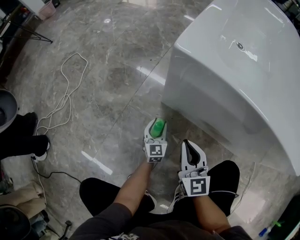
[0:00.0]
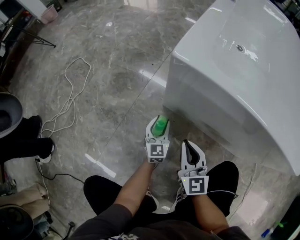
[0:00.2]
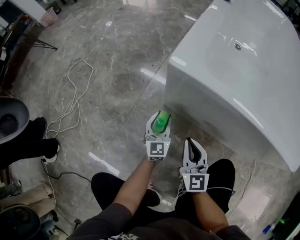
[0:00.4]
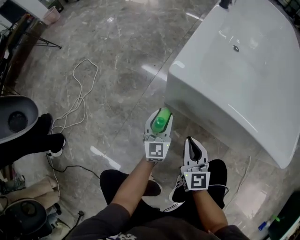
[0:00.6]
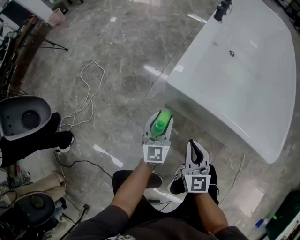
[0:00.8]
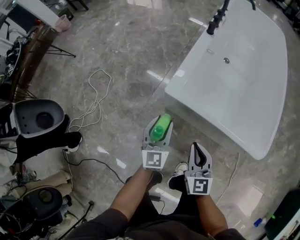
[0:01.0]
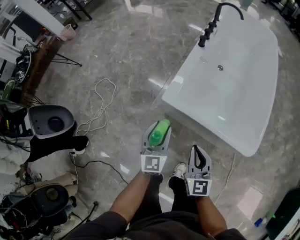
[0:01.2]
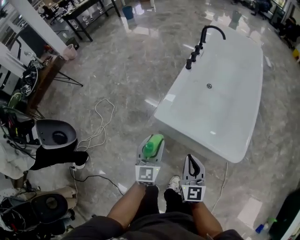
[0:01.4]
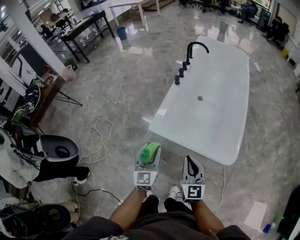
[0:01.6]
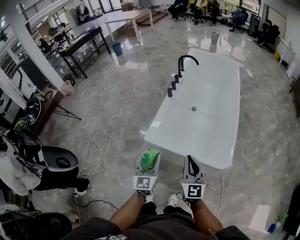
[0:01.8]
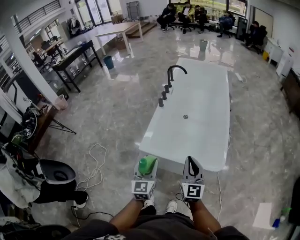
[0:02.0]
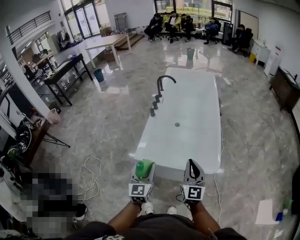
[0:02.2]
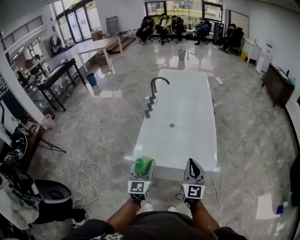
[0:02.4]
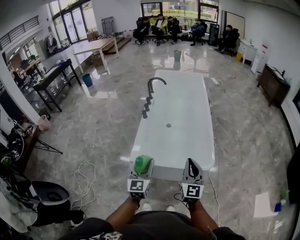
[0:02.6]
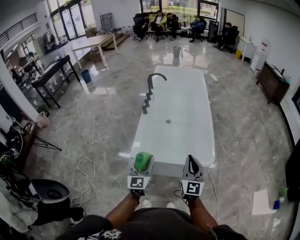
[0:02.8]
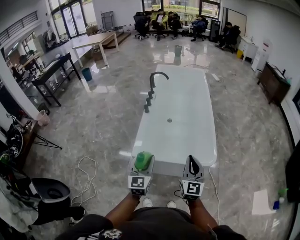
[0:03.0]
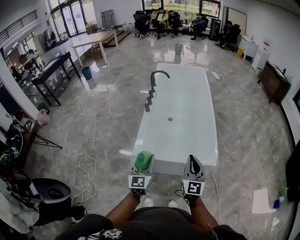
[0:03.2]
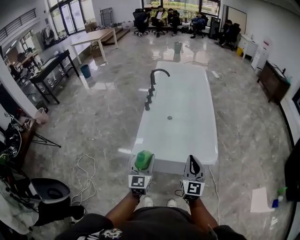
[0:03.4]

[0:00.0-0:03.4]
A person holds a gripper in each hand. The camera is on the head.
0:00.0 to 0:01.6: Both grippers move upward, about 70 cm.
0:01.6 to 0:03.4: The right gripper is displaced upward and to the right by approximately 10 cm, and rotates about 30 degrees. The left gripper travels upward by some 10 cm.

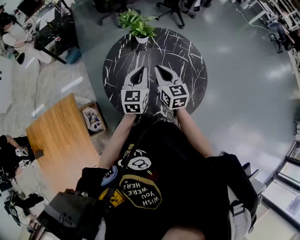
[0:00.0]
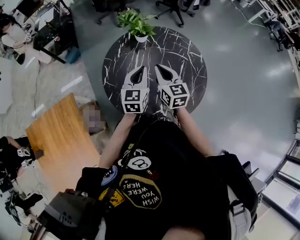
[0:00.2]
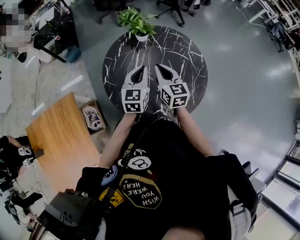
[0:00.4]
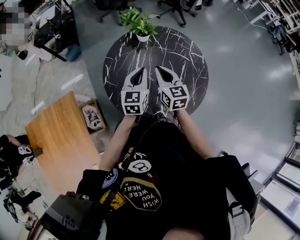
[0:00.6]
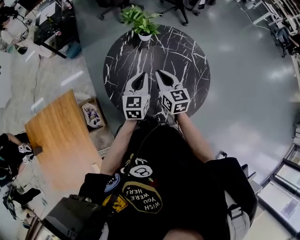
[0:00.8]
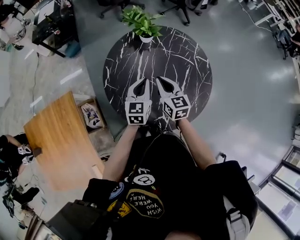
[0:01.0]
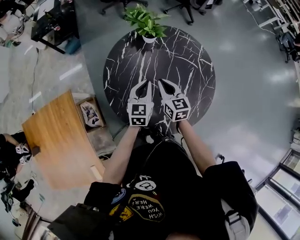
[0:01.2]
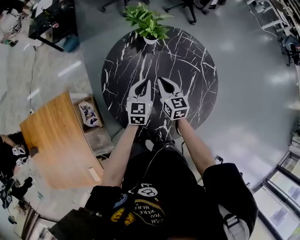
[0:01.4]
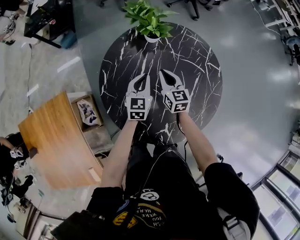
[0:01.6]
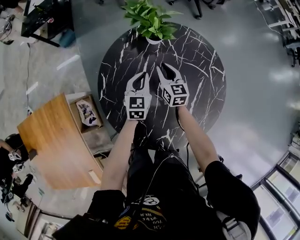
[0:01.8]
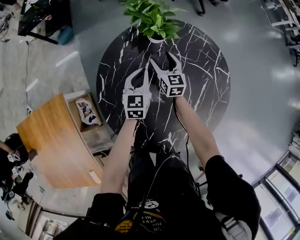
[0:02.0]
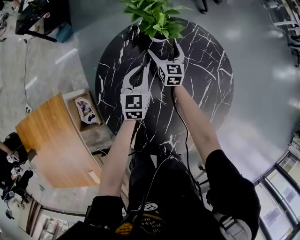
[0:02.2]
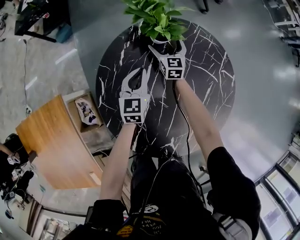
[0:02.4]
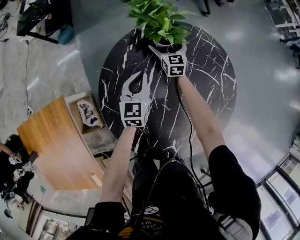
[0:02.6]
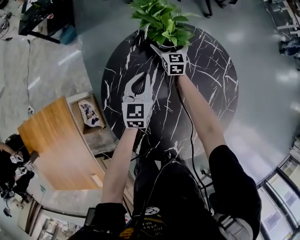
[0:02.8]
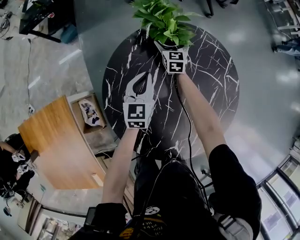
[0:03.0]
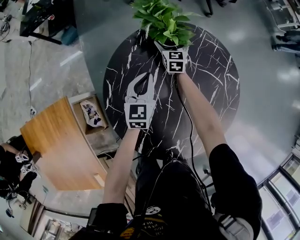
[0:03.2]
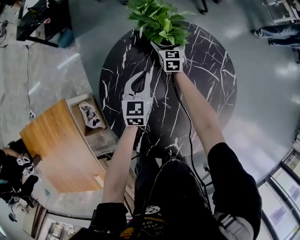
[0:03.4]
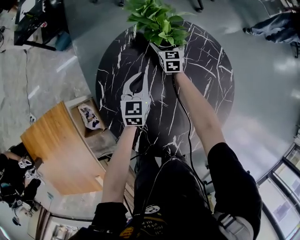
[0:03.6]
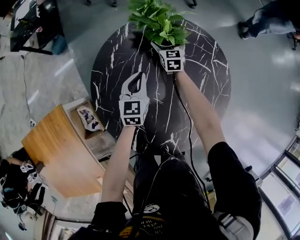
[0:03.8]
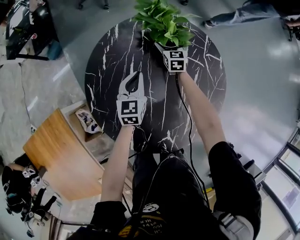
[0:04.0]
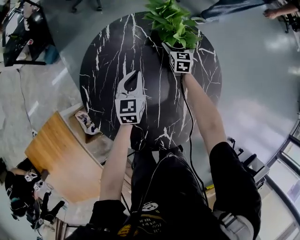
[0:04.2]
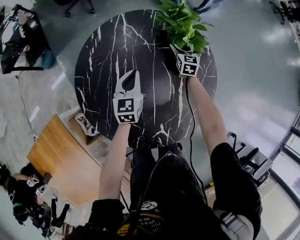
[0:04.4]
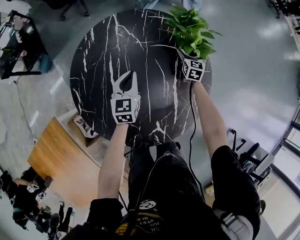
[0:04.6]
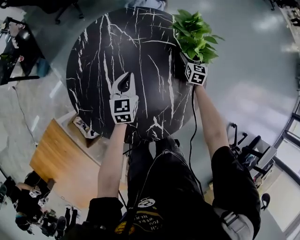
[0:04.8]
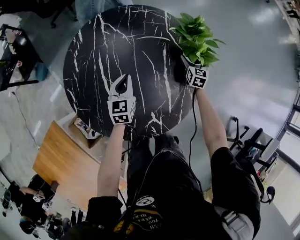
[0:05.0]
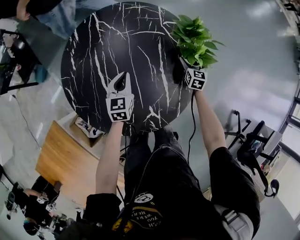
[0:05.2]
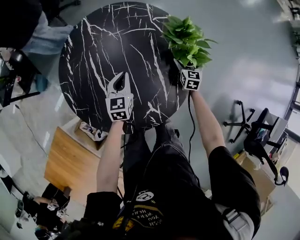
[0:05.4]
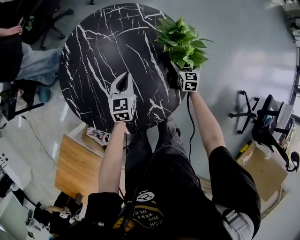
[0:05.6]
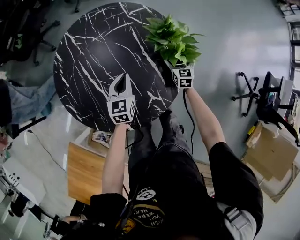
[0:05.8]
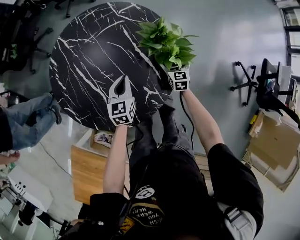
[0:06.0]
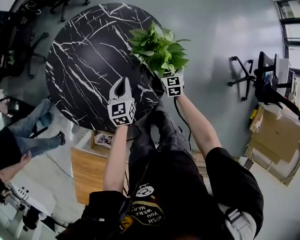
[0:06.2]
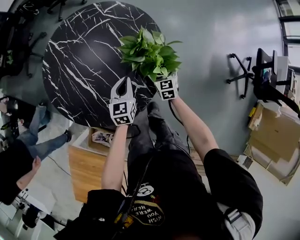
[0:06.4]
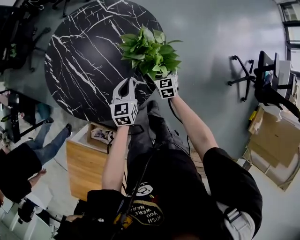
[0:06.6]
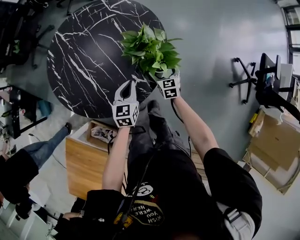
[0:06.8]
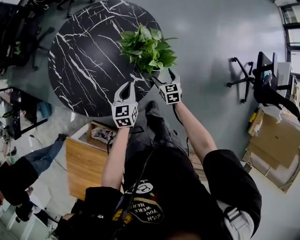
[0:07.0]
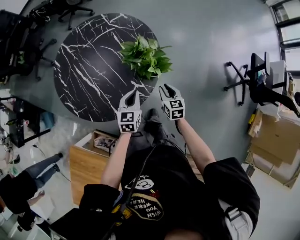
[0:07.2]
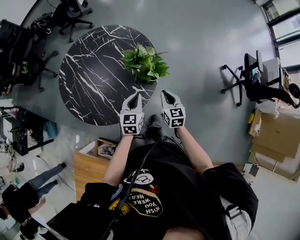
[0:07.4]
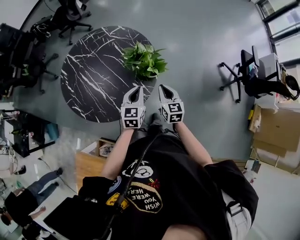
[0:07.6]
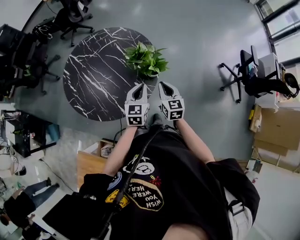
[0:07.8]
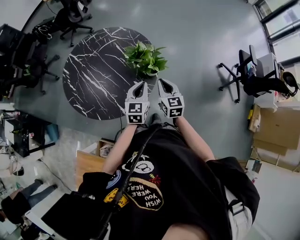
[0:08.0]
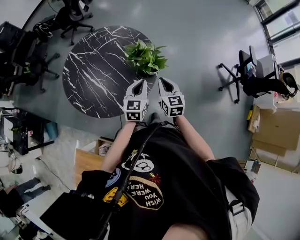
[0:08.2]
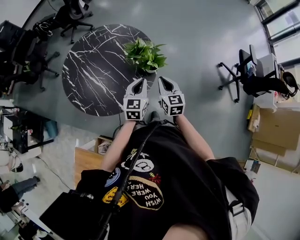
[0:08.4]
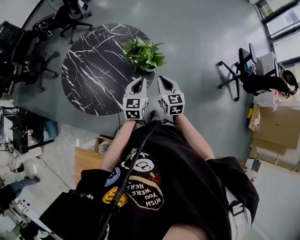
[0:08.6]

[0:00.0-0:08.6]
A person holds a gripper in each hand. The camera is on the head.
0:00.0 to 0:01.4: Both grippers move downward and forward, some 15 cm.
0:01.4 to 0:02.8: The right gripper shifts some 35 cm forward and downward, and opens its fingers, while the left gripper is displaced forward and downward by roughly 15 cm.
0:02.8 to 0:04.4: The right gripper goes some 35 cm to the right, and changes its angle by approximately 30 degrees. Meanwhile the left gripper travels to the right by approximately 15 cm.
0:04.4 to 0:05.8: The right gripper moves backward and to the right, about 35 cm, and turns by some 20 degrees, while the left gripper goes about 20 cm to the right and backward, and rotates roughly 30 degrees.
0:05.8 to 0:07.2: The right gripper moves backward, some 25 cm, and closes, while the left gripper shifts about 20 cm backward and to the right.
0:07.2 to 0:08.6: Both grippers travel together upward, some 15 cm.

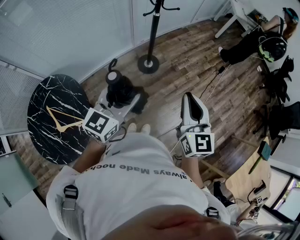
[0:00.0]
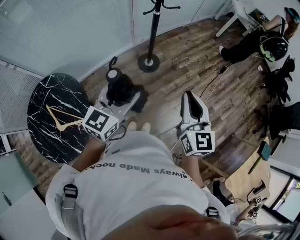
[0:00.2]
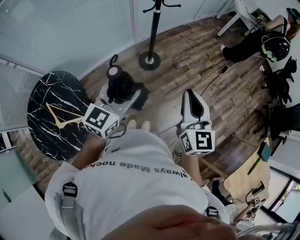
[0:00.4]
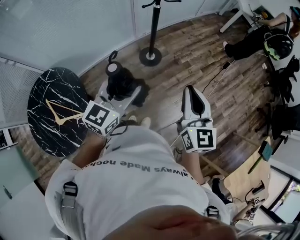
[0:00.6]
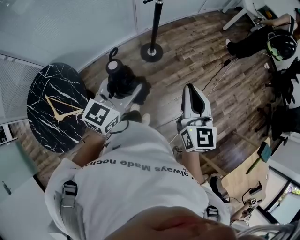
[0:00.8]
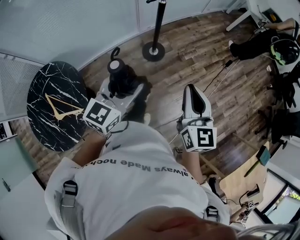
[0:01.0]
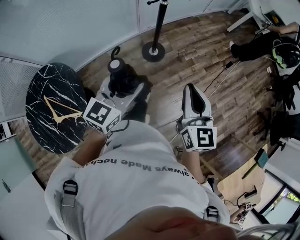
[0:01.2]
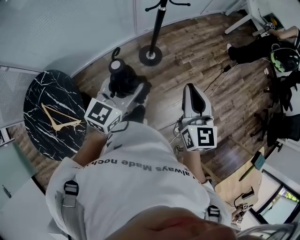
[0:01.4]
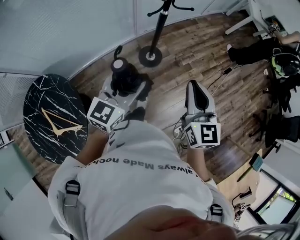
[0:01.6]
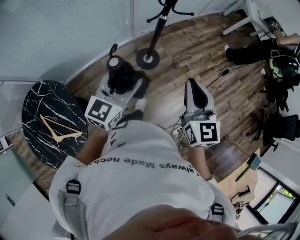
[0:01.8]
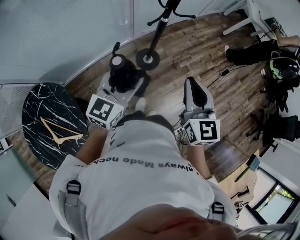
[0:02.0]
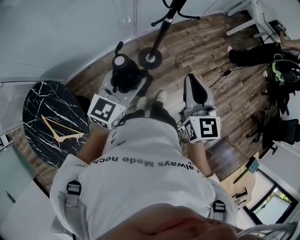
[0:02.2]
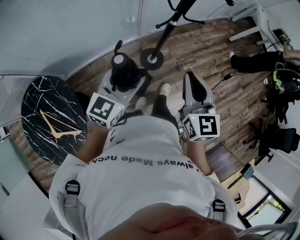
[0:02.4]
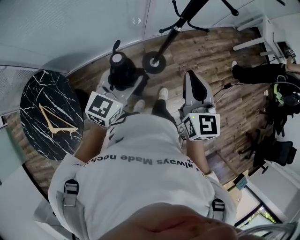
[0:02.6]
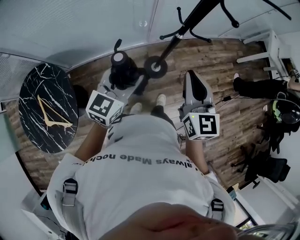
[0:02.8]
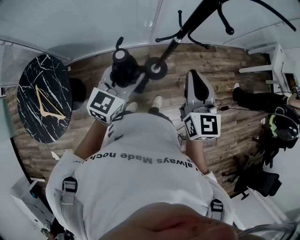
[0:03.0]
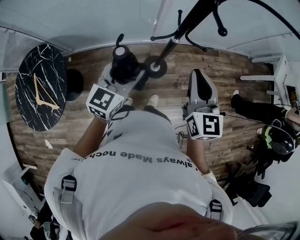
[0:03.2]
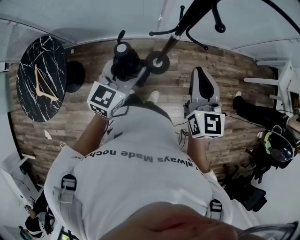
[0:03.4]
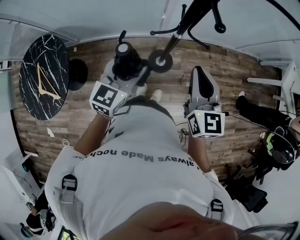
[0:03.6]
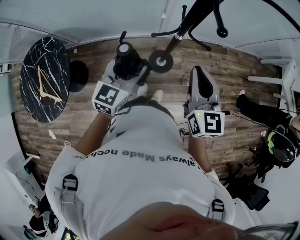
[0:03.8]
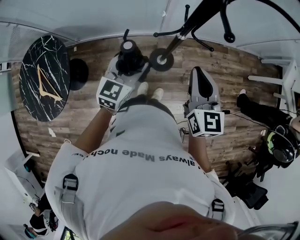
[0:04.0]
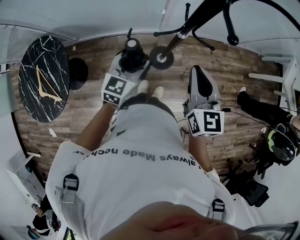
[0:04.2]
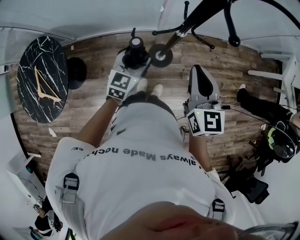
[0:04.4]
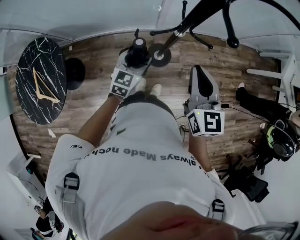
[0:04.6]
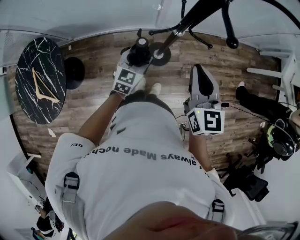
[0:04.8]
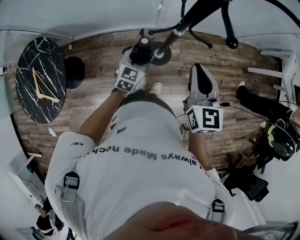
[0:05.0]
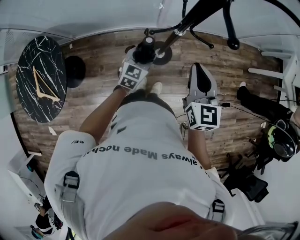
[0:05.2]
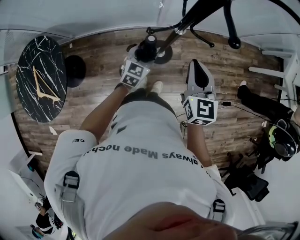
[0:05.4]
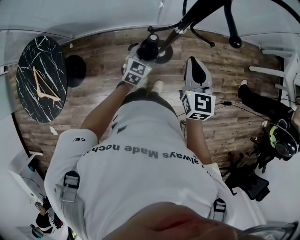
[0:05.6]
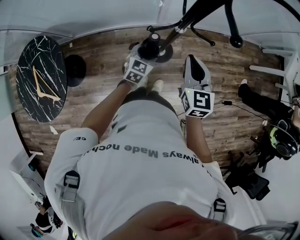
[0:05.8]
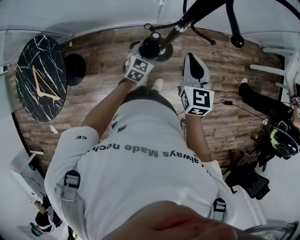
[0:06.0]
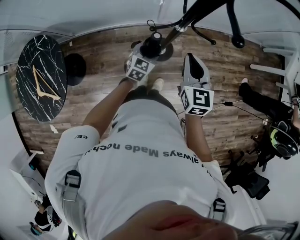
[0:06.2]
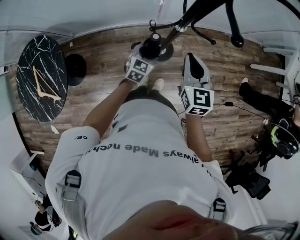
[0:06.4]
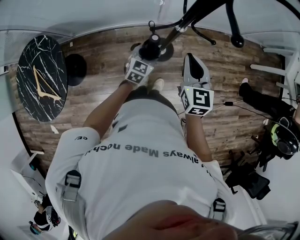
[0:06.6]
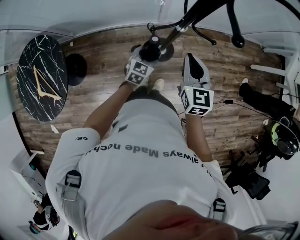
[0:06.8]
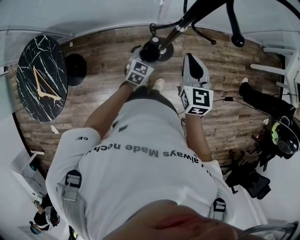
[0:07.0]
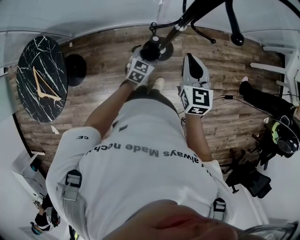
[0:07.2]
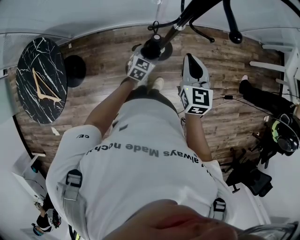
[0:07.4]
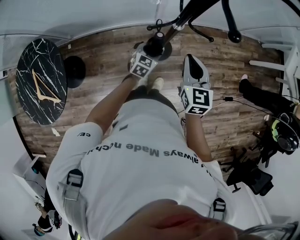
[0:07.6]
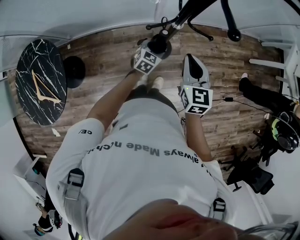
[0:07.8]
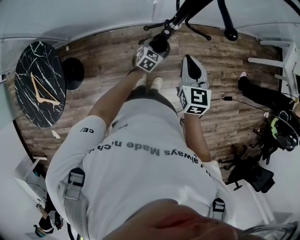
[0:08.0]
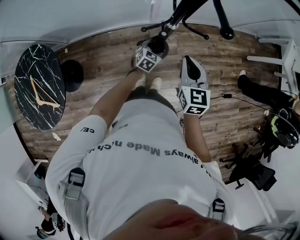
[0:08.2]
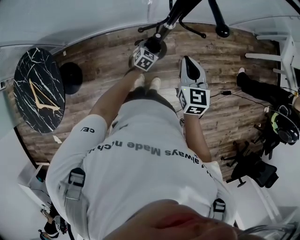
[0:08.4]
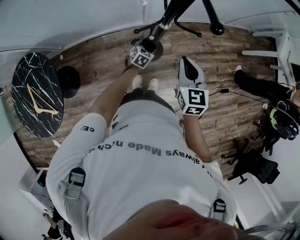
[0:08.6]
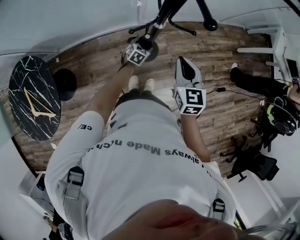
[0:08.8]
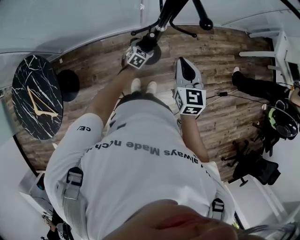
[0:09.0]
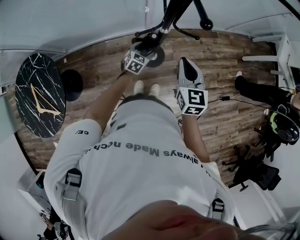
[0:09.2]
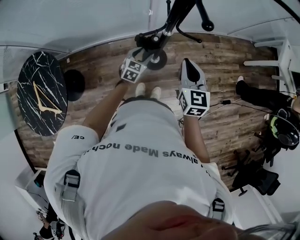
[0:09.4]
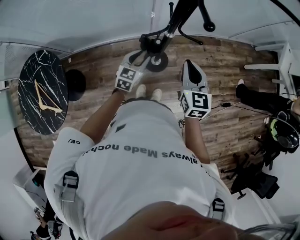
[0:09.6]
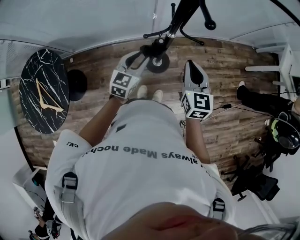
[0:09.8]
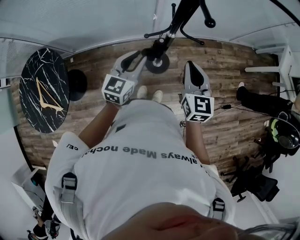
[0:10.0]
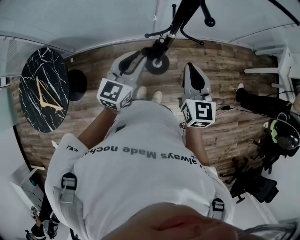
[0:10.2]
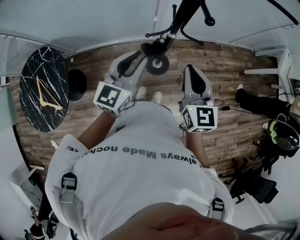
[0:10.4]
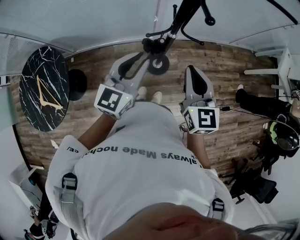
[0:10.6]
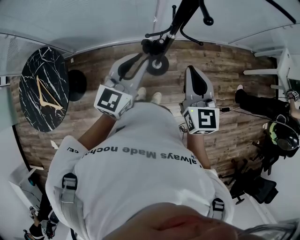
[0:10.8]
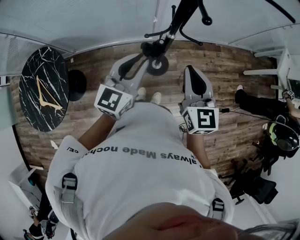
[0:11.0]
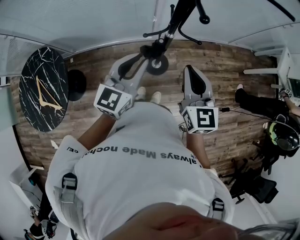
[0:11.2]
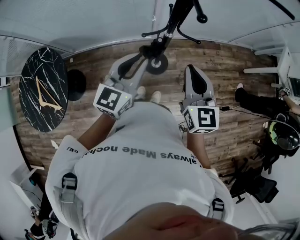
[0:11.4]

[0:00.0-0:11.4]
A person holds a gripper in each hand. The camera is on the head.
0:00.0 to 0:01.4: Both grippers move forward, roughly 15 cm.
0:01.4 to 0:02.8: Both grippers travel together forward, about 25 cm.
0:02.8 to 0:04.2: The right gripper shifts approximately 15 cm forward and to the right, while the left gripper shifts approximately 15 cm downward, forward and to the right.
0:04.2 to 0:05.6: The left gripper moves downward and forward, about 15 cm. Meanwhile the right gripper heads downward, covering roughly 10 cm.
0:05.6 to 0:07.2: The left gripper shifts by approximately 5 cm.
0:07.2 to 0:08.6: The left gripper goes some 15 cm downward and forward.
0:08.6 to 0:10.0: The left gripper travels upward by about 30 cm, tilts its fingers roughly 30 degrees upward, and closes its fingers, while the right gripper heads upward, covering roughly 5 cm.
0:10.0 to 0:11.4: Both grippers travel together upward, approximately 10 cm.
